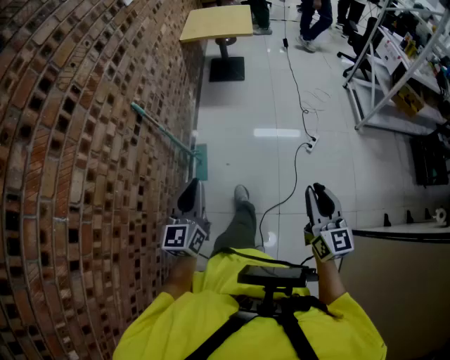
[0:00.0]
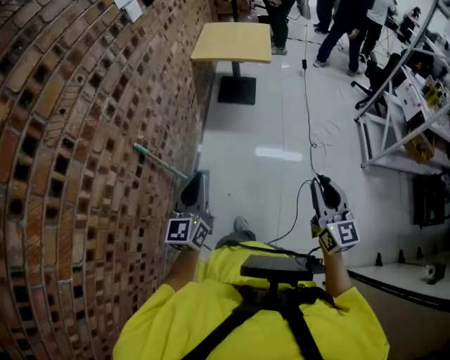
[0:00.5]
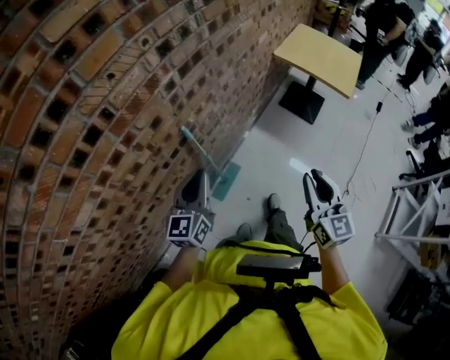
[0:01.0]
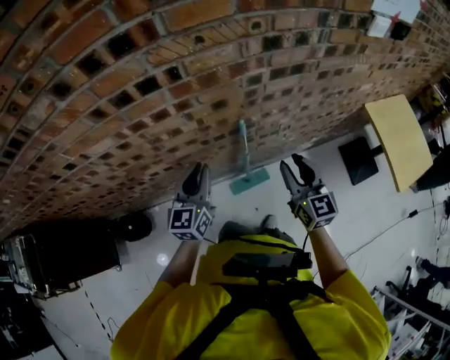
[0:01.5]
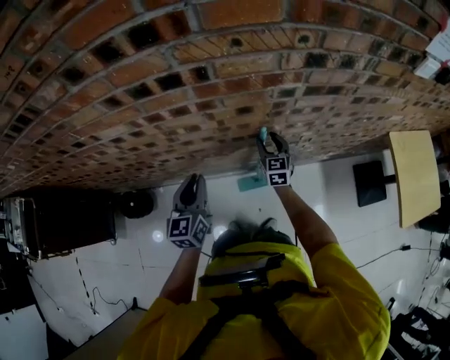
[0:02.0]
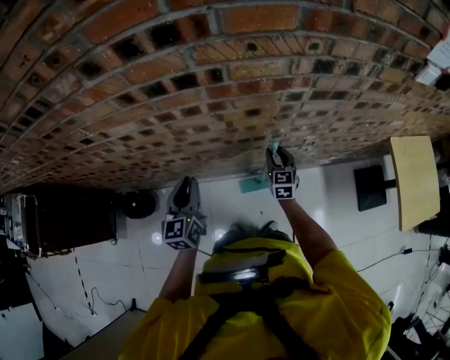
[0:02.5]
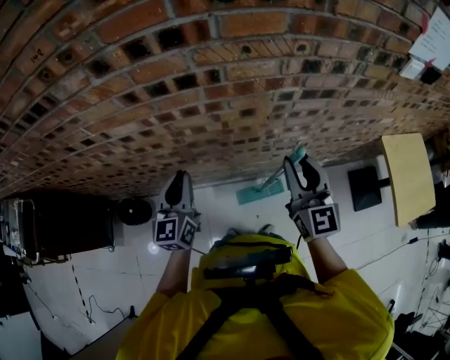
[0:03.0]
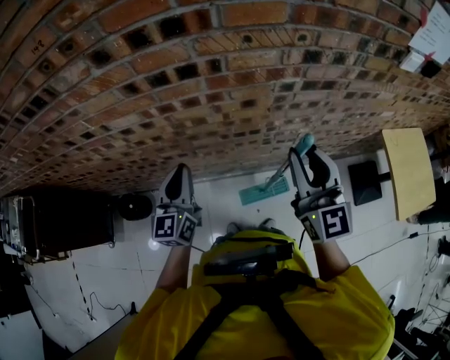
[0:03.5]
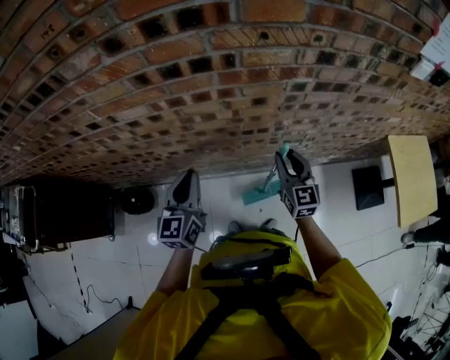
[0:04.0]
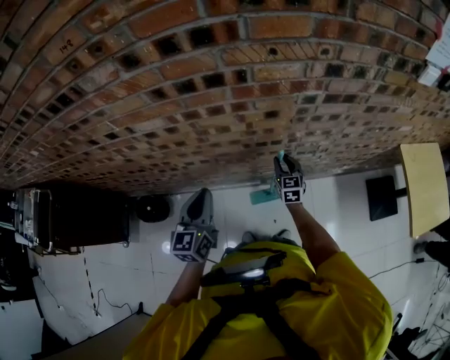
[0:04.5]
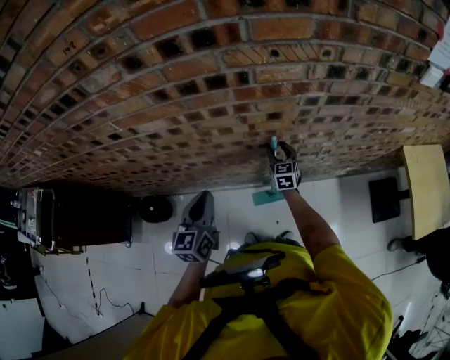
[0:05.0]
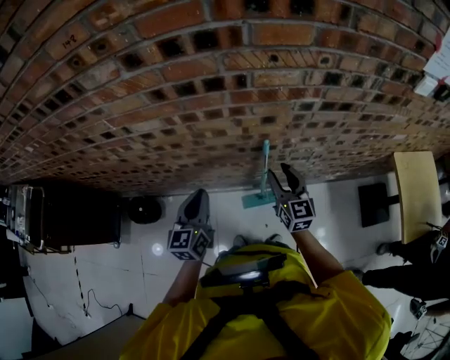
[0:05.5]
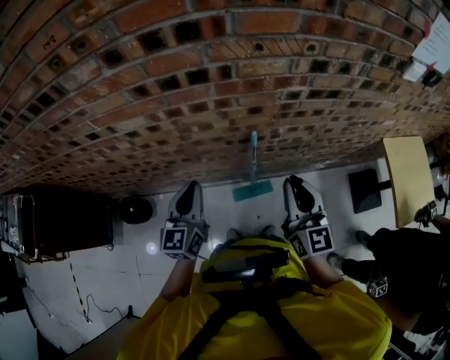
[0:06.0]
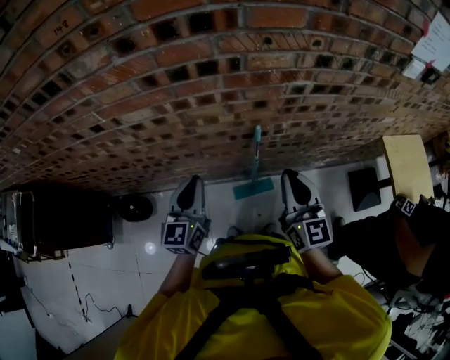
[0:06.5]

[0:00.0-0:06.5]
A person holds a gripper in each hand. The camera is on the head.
0:00.0 to 0:02.0: The left gripper moves about 30 cm, and swivels some 80 degrees. The right gripper moves roughly 80 cm, changes its angle by approximately 80 degrees, and opens its fingers.
0:02.0 to 0:04.5: The right gripper shifts approximately 5 cm backward, moves roughly 35 cm upward and comes back, and closes; the left gripper heads upward, backward and to the left, covering some 10 cm.
0:04.5 to 0:06.5: The right gripper moves upward and backward, some 30 cm, rotates roughly 20 degrees, and closes its fingers.

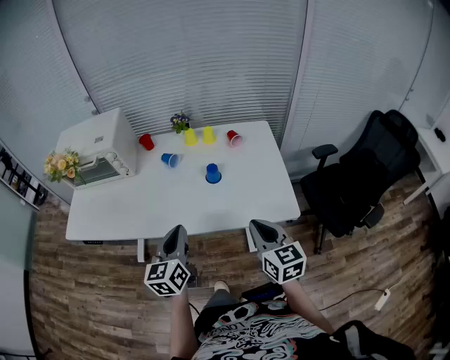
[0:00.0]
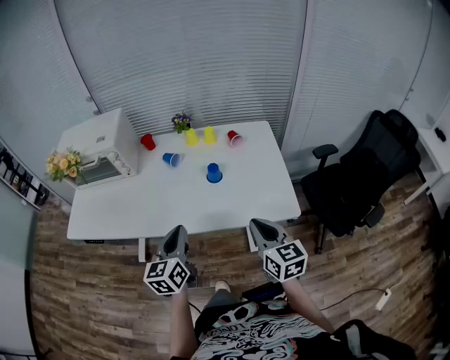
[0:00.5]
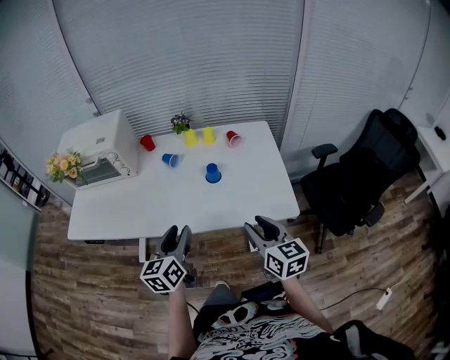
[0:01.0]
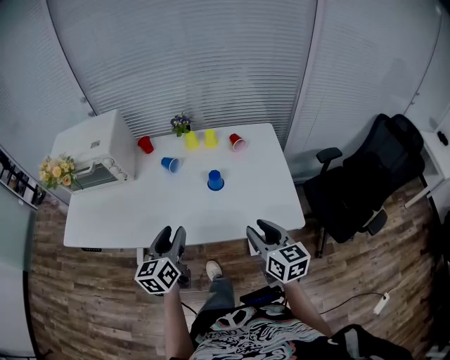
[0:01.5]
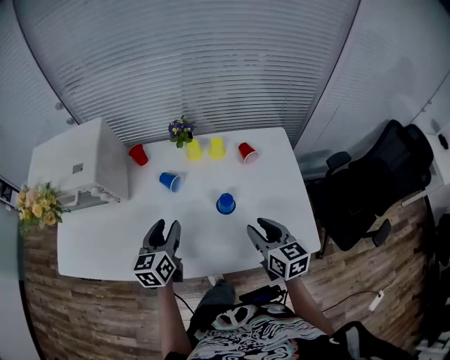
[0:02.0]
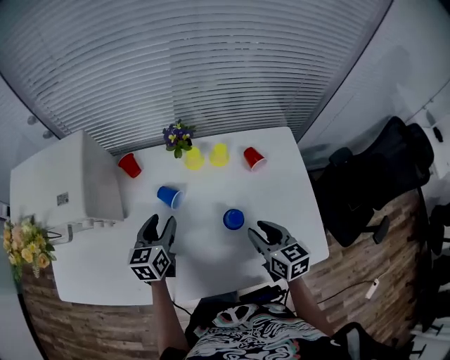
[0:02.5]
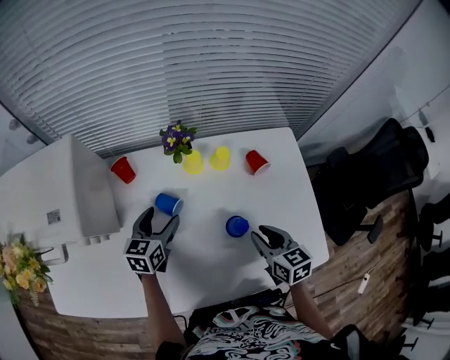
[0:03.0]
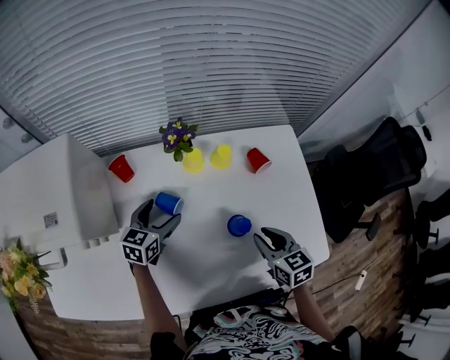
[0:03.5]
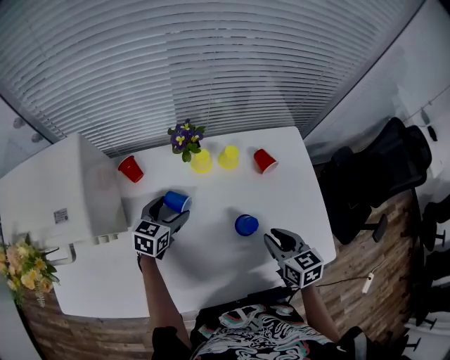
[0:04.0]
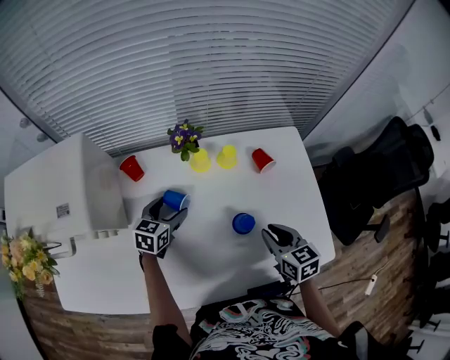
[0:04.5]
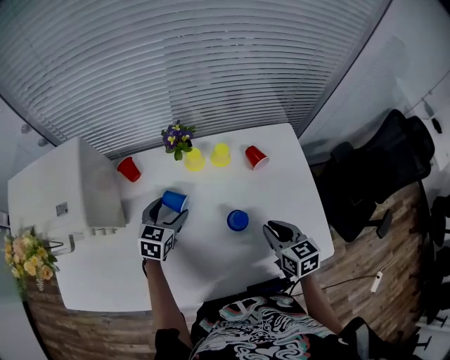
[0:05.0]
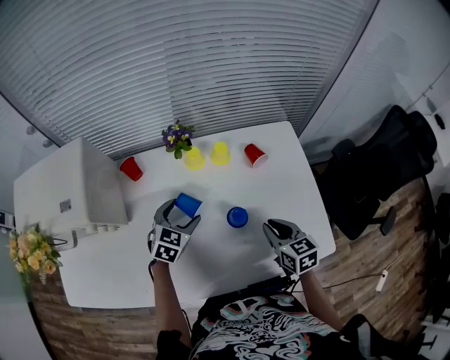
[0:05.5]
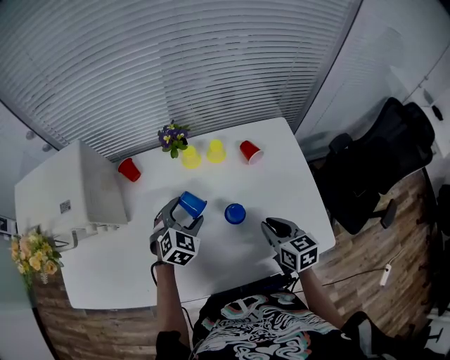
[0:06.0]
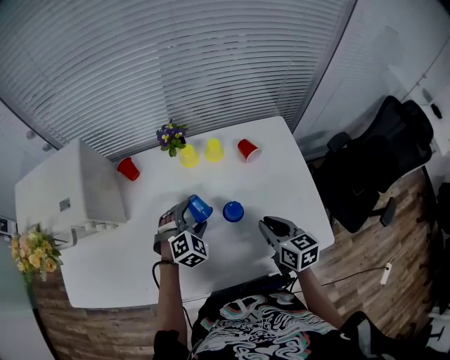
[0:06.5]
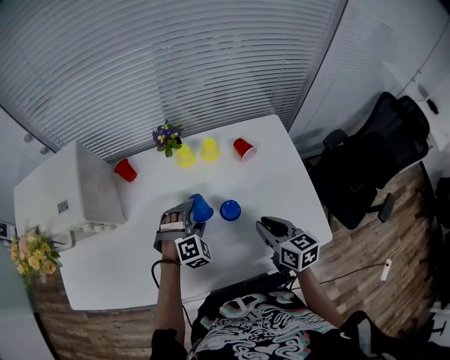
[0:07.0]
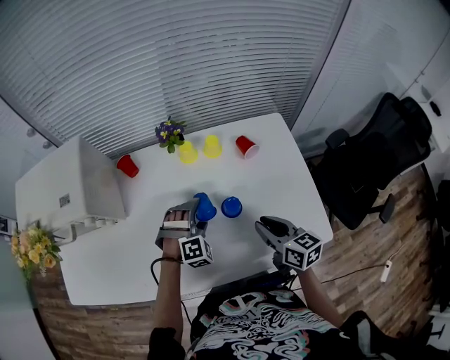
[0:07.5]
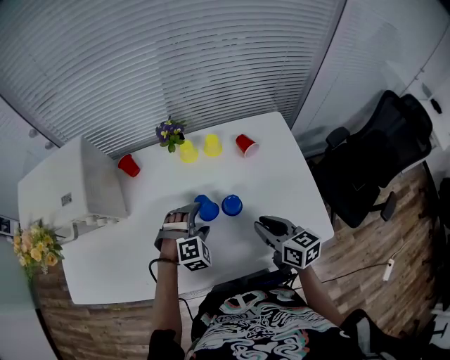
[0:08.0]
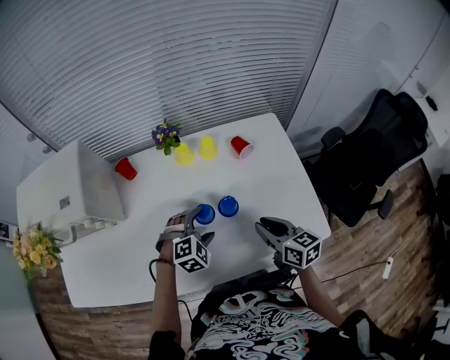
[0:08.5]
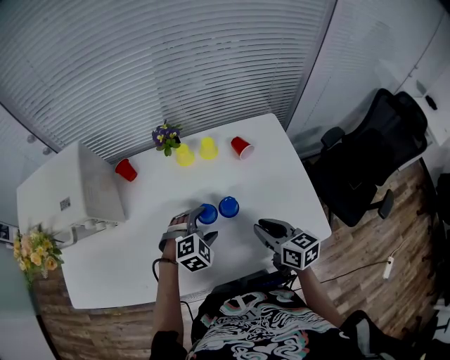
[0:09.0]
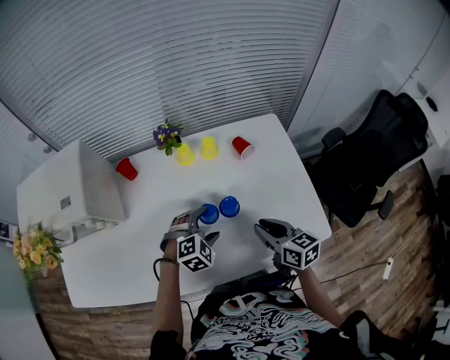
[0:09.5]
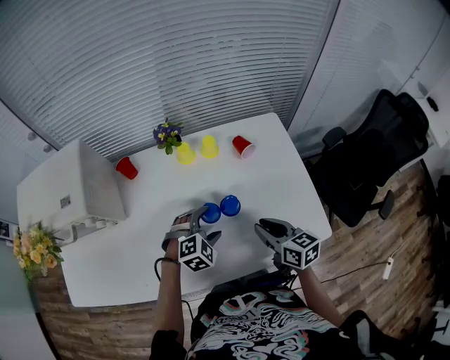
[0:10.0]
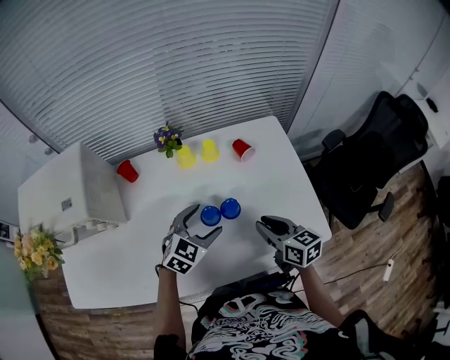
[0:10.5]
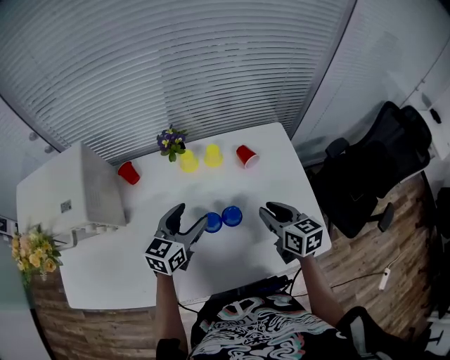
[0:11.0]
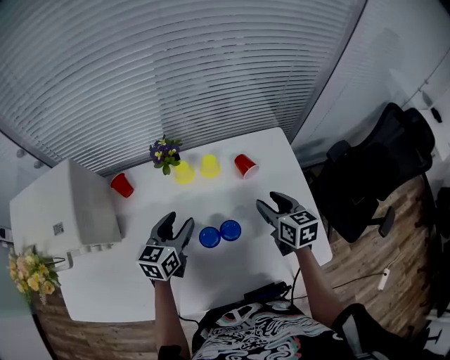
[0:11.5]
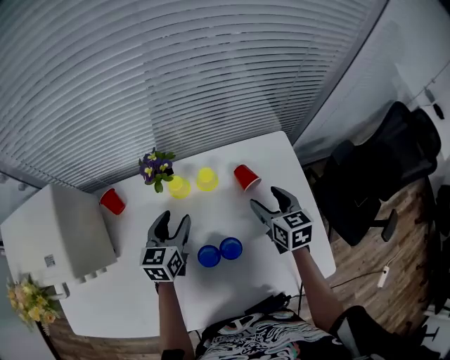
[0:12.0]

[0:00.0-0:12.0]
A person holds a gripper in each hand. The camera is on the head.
0:00.0 to 0:02.0: Both grippers move forward, about 20 cm. The right gripper opens. The left gripper opens its fingers.
0:02.0 to 0:04.0: The left gripper is displaced forward and downward by about 20 cm, changes its angle by some 30 degrees, and opens. The right gripper goes approximately 10 cm forward and downward.
0:04.0 to 0:06.0: The left gripper shifts approximately 10 cm to the right and backward, and turns by roughly 40 degrees.
0:06.0 to 0:08.0: The left gripper is displaced backward by some 5 cm, and rotates about 40 degrees.
0:08.0 to 0:10.0: There are only small adjustments of the grippers.
0:10.0 to 0:12.0: The right gripper travels forward by about 25 cm, and opens. Meanwhile the left gripper is displaced forward and to the left by roughly 20 cm, and twists about 60 degrees counterclockwise, seen from behind.

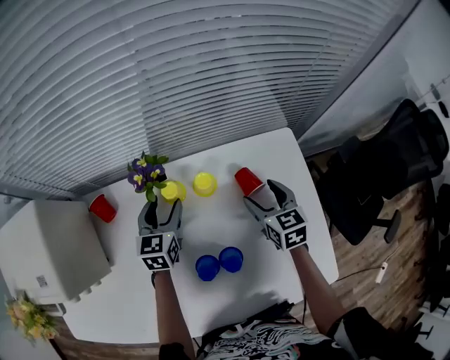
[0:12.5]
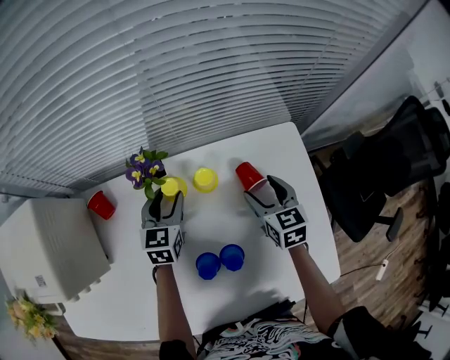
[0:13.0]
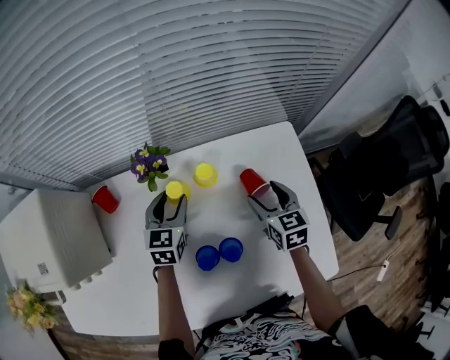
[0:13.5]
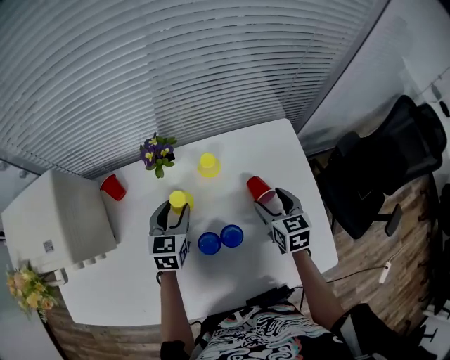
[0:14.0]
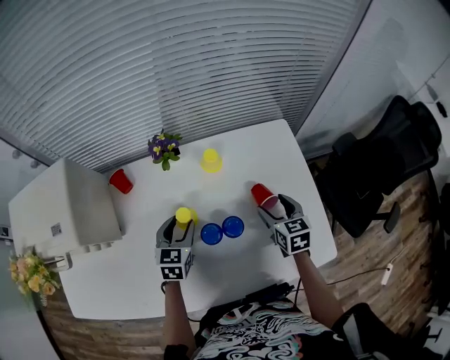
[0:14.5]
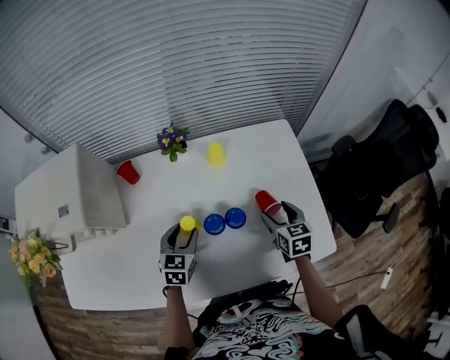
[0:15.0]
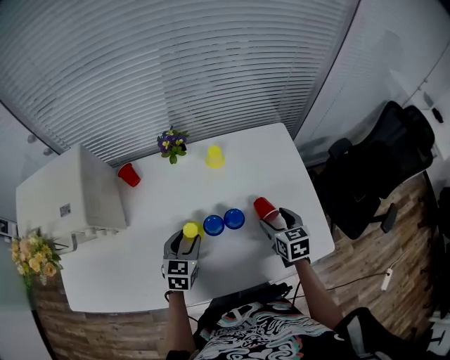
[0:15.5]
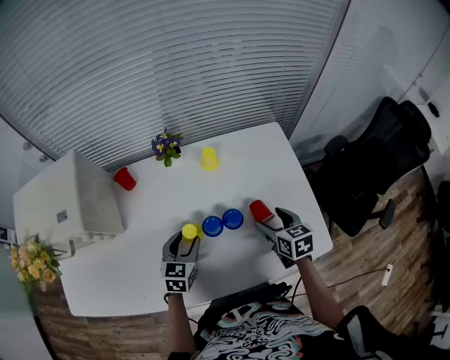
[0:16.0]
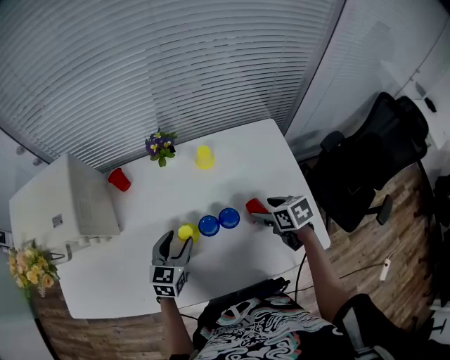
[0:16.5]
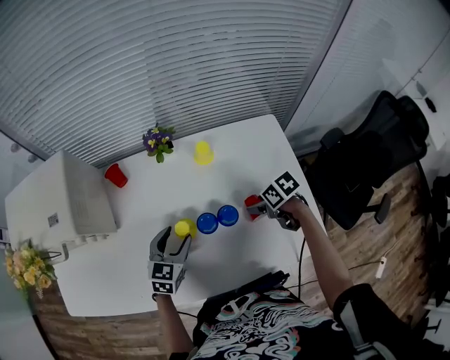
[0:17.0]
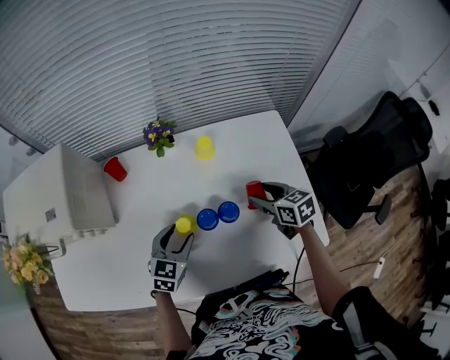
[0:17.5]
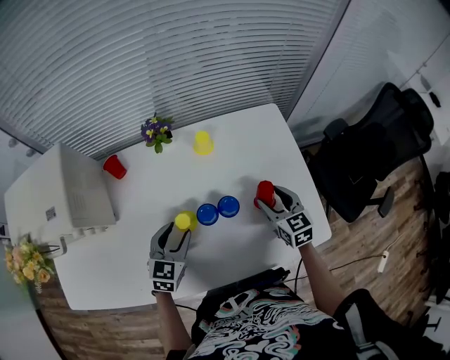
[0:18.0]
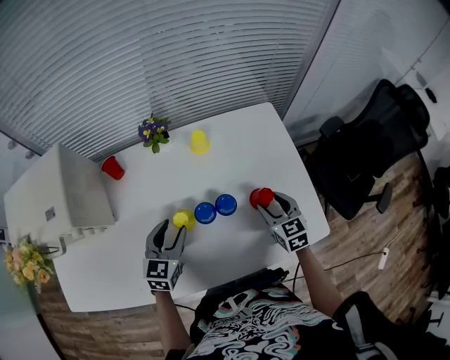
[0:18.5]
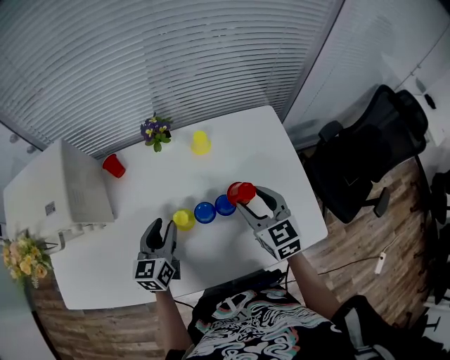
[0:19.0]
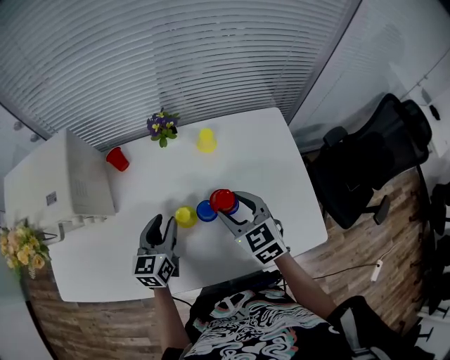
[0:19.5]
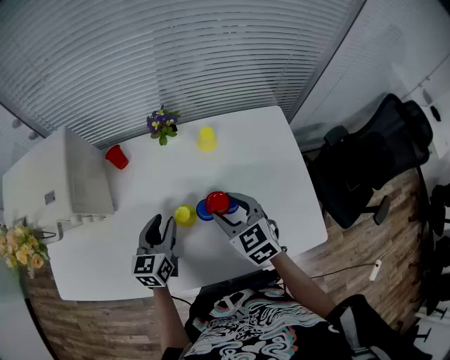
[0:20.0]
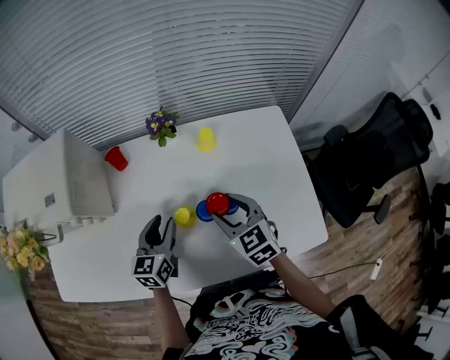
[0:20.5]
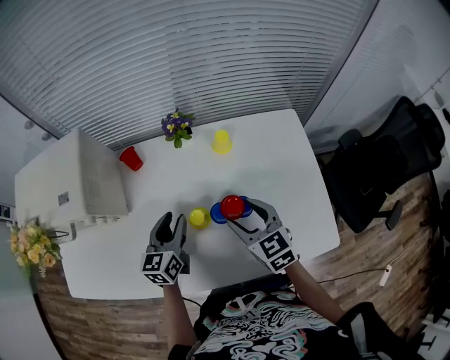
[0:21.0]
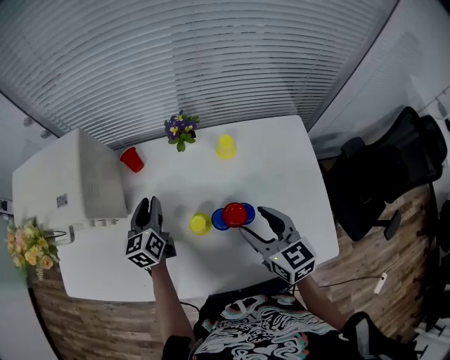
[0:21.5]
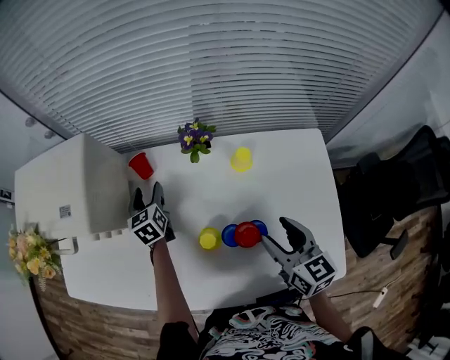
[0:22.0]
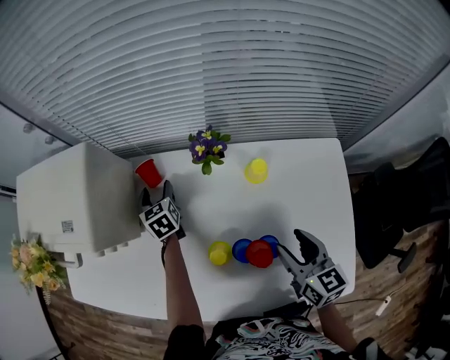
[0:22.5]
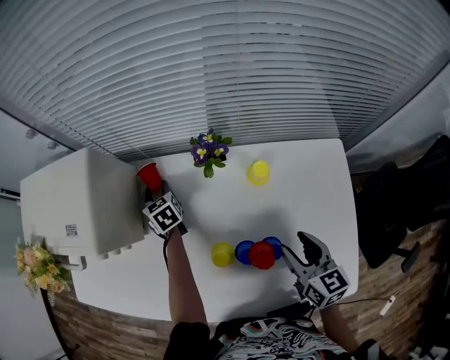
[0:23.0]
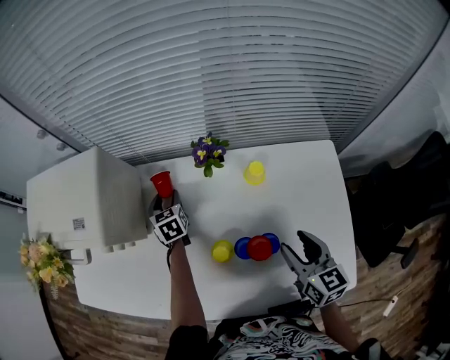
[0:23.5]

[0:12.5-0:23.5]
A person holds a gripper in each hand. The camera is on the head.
0:12.5 to 0:14.5: The two grippers go some 15 cm backward.
0:14.5 to 0:16.0: Both grippers move backward, roughly 5 cm.
0:18.0 to 0:20.0: The left gripper moves about 5 cm, and turns by roughly 30 degrees. Meanwhile the right gripper heads to the left, covering about 15 cm.
0:20.0 to 0:21.5: The right gripper changes its angle by approximately 20 degrees. Meanwhile the left gripper goes about 10 cm forward and to the left.
0:21.5 to 0:23.5: The left gripper shifts about 15 cm forward and downward, and changes its angle by approximately 30 degrees. The right gripper goes roughly 5 cm to the right.
